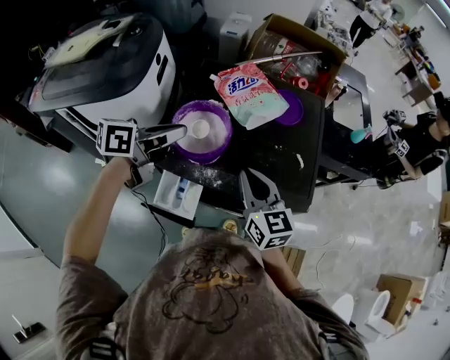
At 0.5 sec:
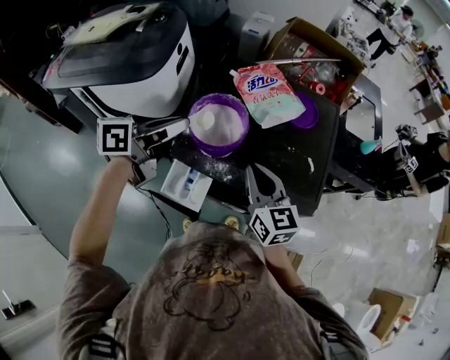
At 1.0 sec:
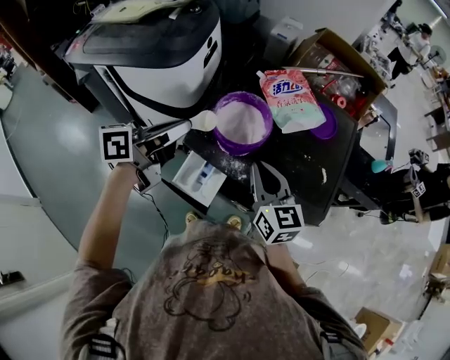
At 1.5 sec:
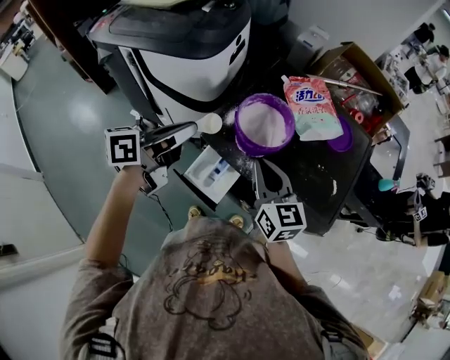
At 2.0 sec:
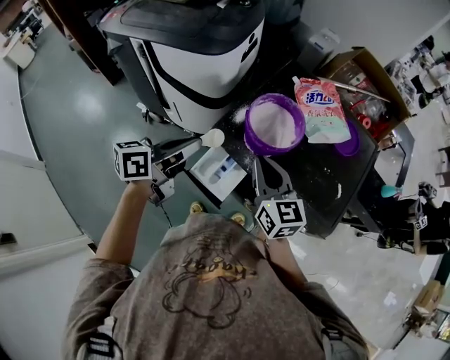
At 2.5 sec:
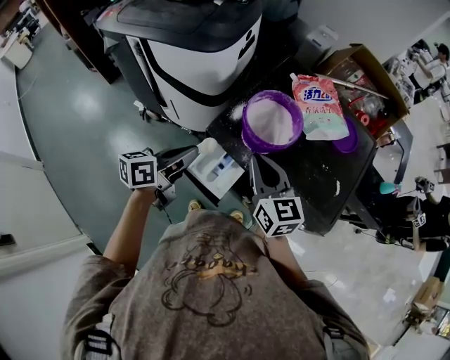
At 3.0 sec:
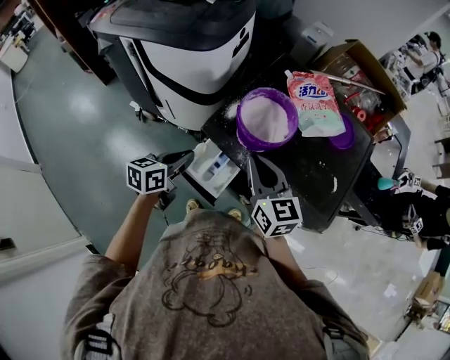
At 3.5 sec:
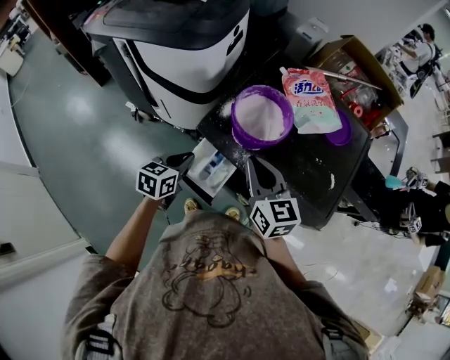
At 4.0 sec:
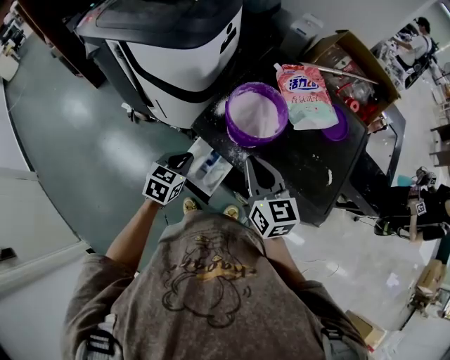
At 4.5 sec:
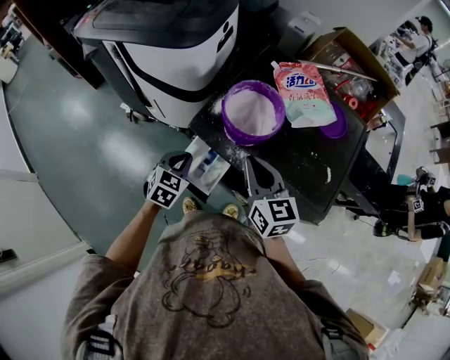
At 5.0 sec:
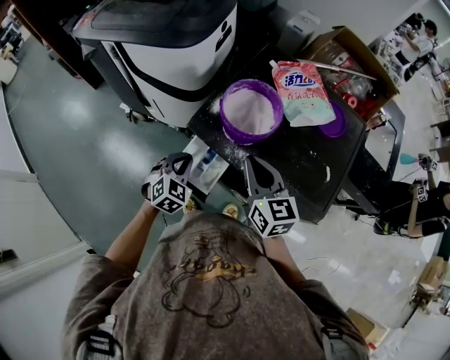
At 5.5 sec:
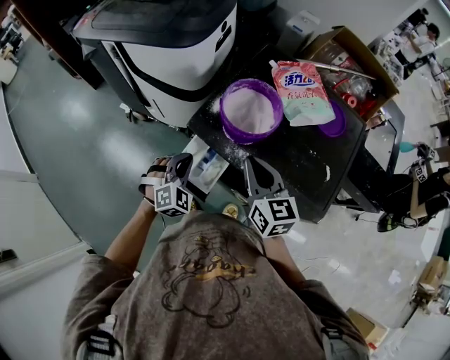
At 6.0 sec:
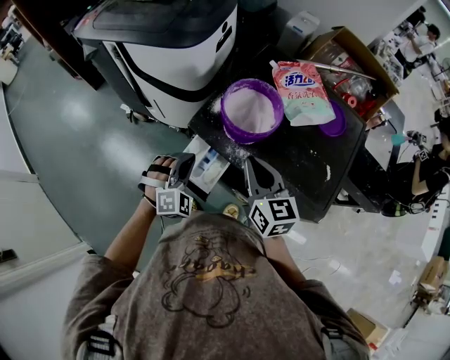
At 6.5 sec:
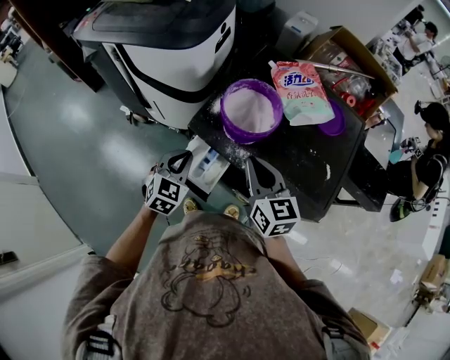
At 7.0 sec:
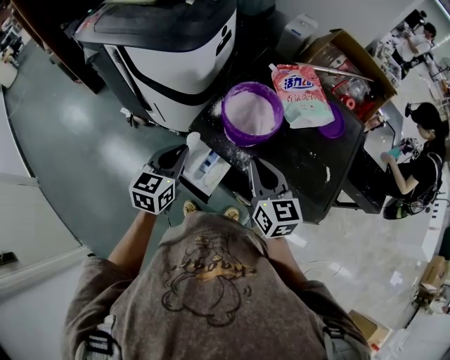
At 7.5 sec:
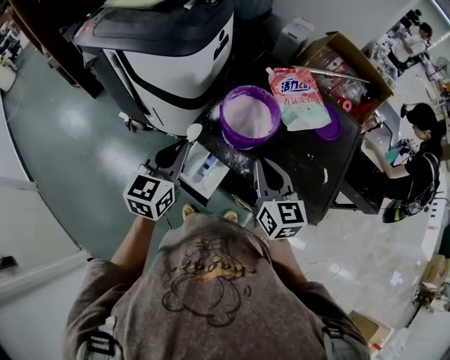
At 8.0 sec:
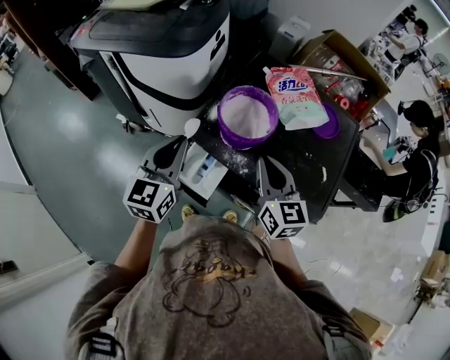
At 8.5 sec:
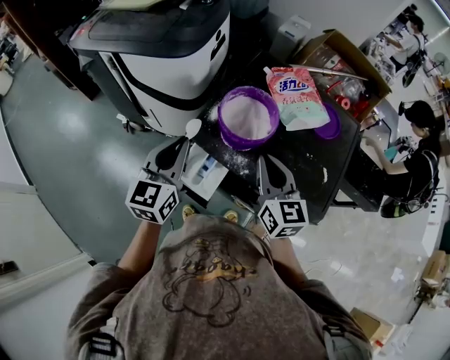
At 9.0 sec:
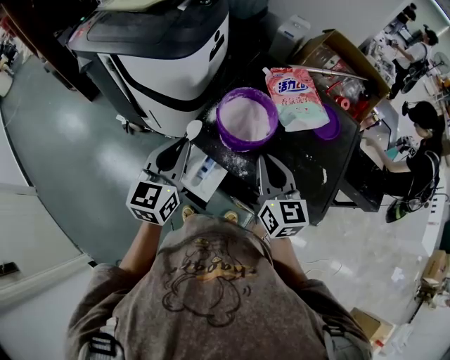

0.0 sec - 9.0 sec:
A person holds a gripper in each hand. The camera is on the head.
0.0 sec - 2.0 sec: The right gripper is displaced to the left by roughly 15 cm, and swivels approximately 20 degrees. The left gripper goes some 20 cm backward and to the left, and turns by some 30 degrees.
2.0 sec - 4.5 sec: The left gripper shifts approximately 20 cm downward, and points its fingers approximately 30 degrees further downward.
4.5 sec - 7.0 sec: The left gripper heads upward, covering about 10 cm, and rotates approximately 30 degrees.
7.0 sec - 9.0 sec: The left gripper shifts some 10 cm upward.

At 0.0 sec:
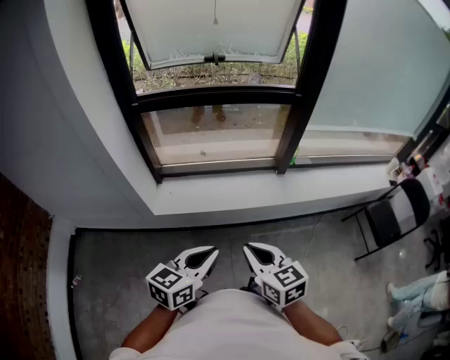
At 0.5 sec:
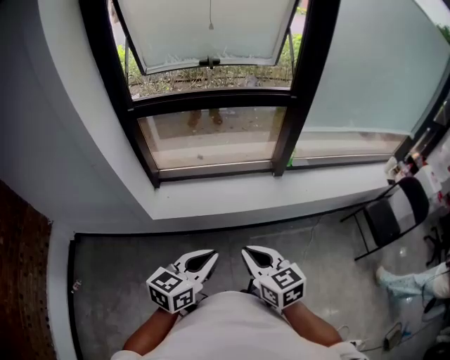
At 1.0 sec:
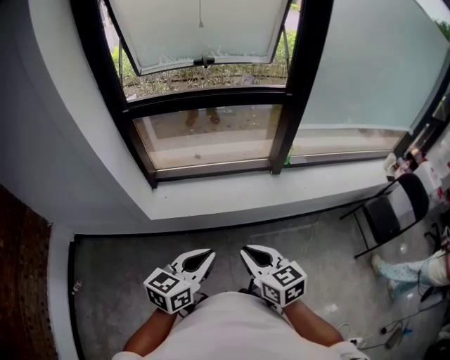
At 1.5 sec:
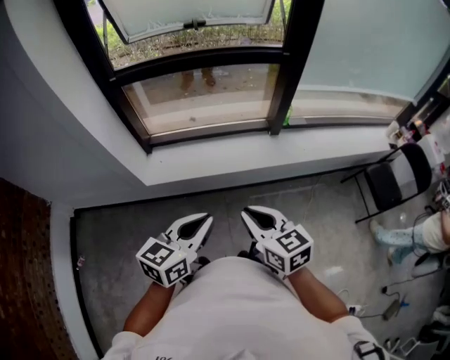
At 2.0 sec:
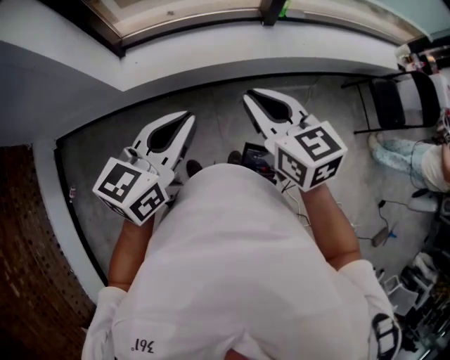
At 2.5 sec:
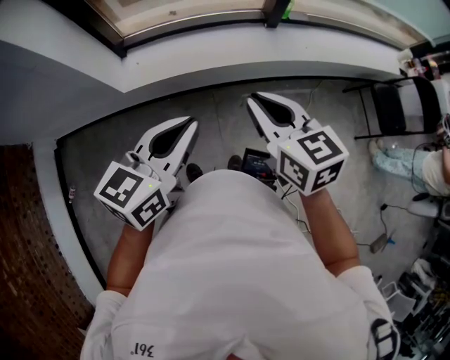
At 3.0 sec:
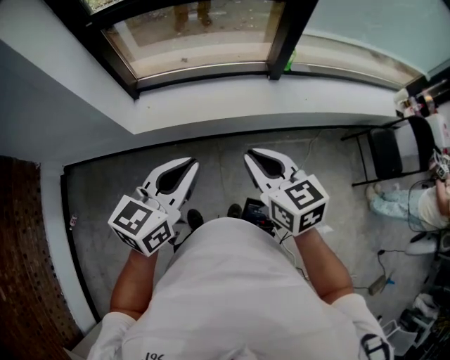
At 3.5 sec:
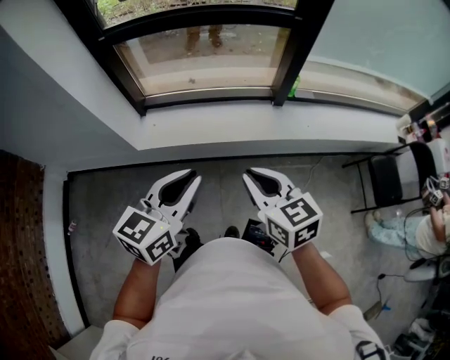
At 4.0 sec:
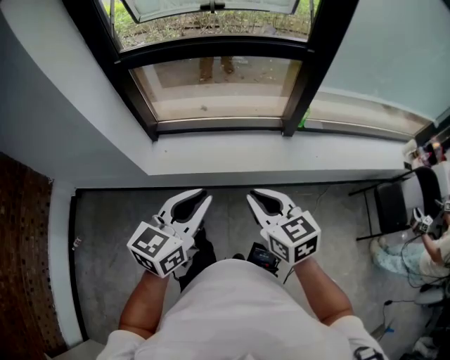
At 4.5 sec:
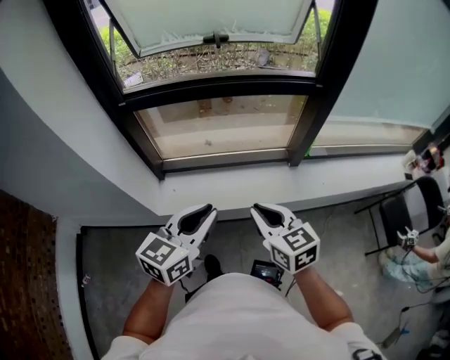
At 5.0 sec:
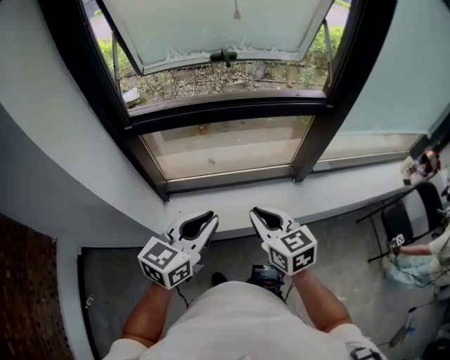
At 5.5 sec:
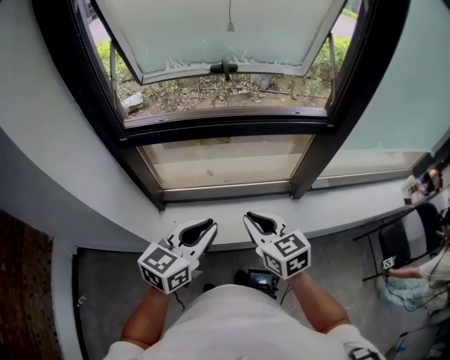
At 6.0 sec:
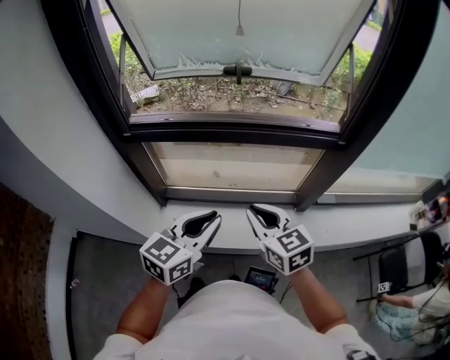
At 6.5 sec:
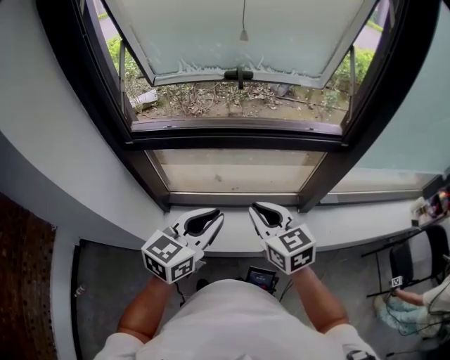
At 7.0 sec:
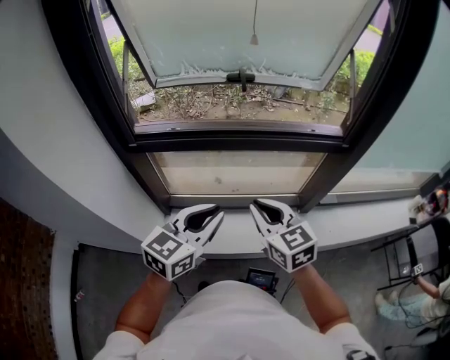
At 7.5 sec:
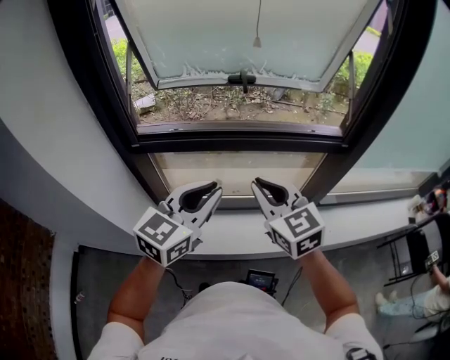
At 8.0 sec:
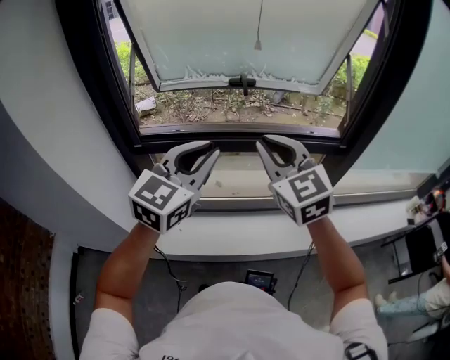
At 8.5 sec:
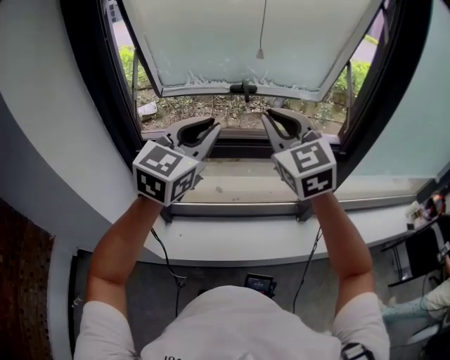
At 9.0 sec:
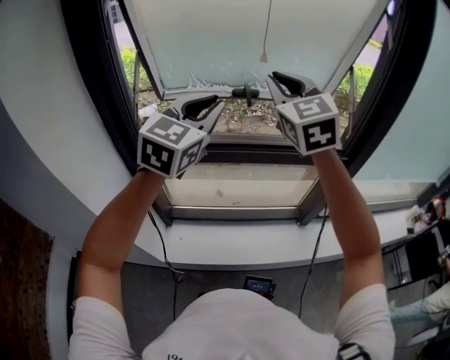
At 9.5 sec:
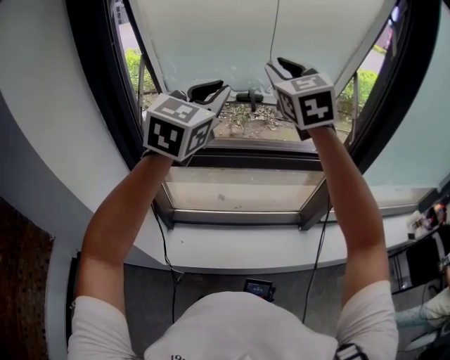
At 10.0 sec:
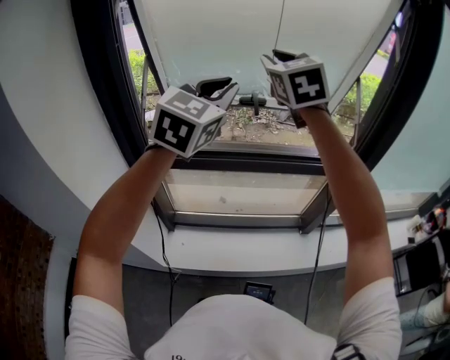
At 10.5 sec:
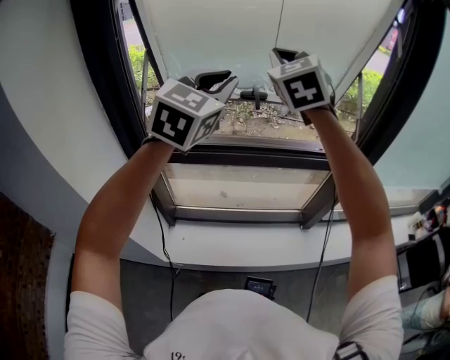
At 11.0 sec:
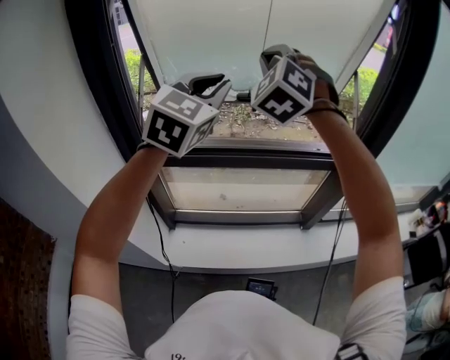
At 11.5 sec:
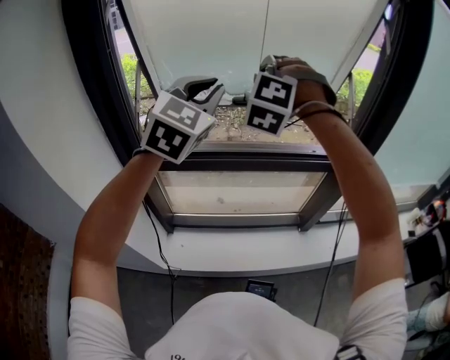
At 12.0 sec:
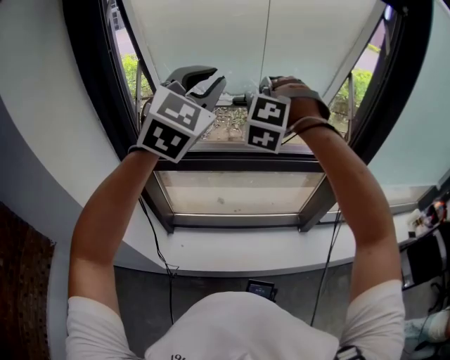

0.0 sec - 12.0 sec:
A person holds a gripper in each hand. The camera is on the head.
0.0 sec - 2.0 sec: The grippers both shift to the right by approximately 5 cm.
2.0 sec - 4.0 sec: The two grippers go about 10 cm forward.
4.0 sec - 6.0 sec: Both grippers travel together forward, some 30 cm.
6.0 sec - 8.0 sec: The right gripper is displaced upward and forward by approximately 20 cm, and rotates approximately 30 degrees. The left gripper moves upward, forward and to the left, some 20 cm, and turns by about 20 degrees.
8.0 sec - 10.0 sec: Both grippers move upward and forward, about 20 cm. The right gripper opens its fingers.
10.0 sec - 12.0 sec: The right gripper moves downward, approximately 10 cm, twists roughly 60 degrees counterclockwise, seen from behind, and closes.

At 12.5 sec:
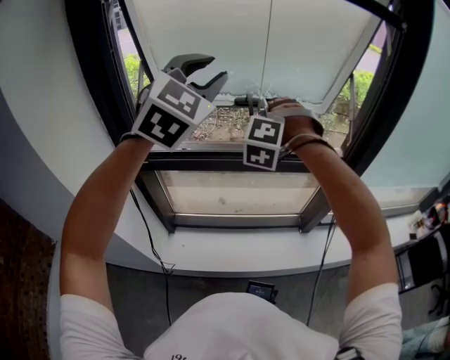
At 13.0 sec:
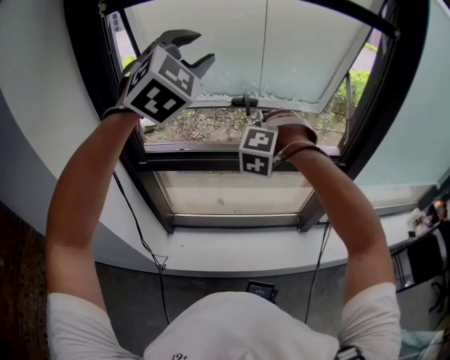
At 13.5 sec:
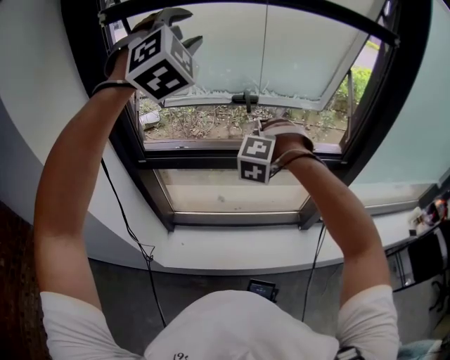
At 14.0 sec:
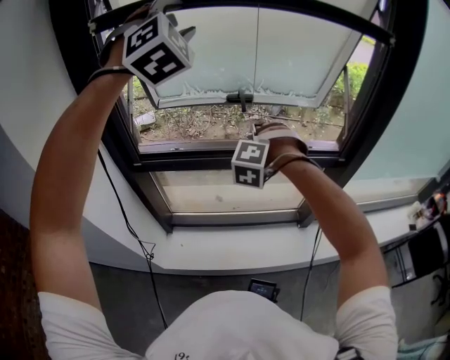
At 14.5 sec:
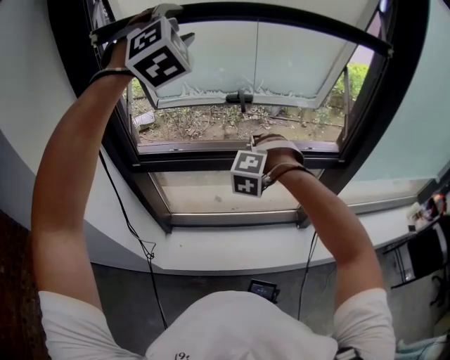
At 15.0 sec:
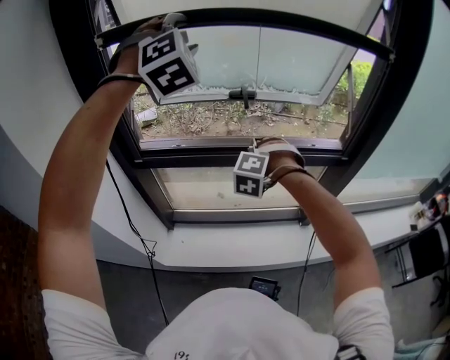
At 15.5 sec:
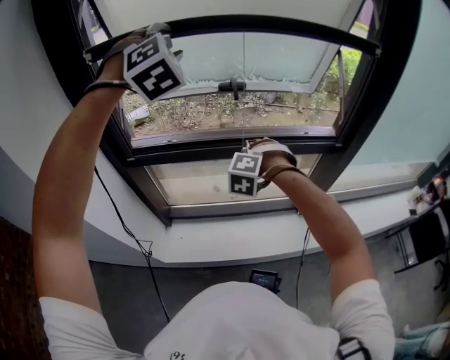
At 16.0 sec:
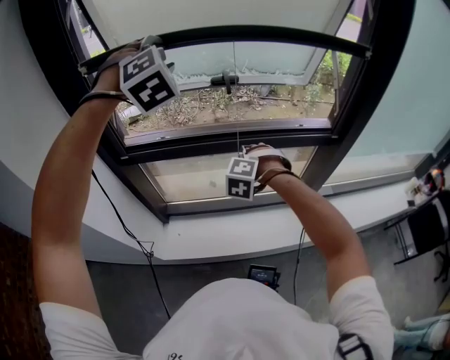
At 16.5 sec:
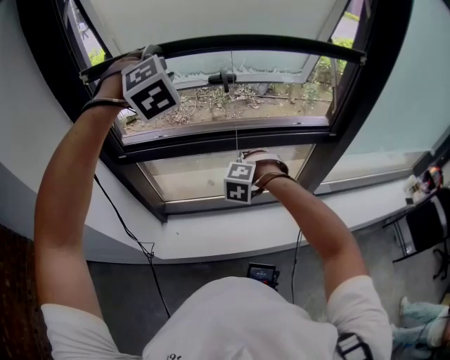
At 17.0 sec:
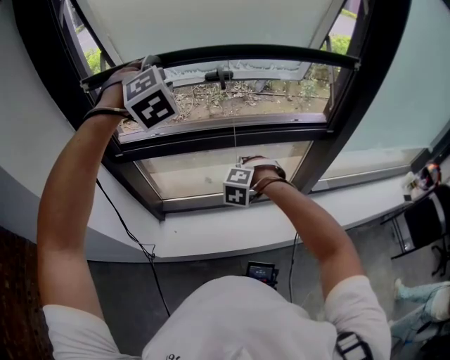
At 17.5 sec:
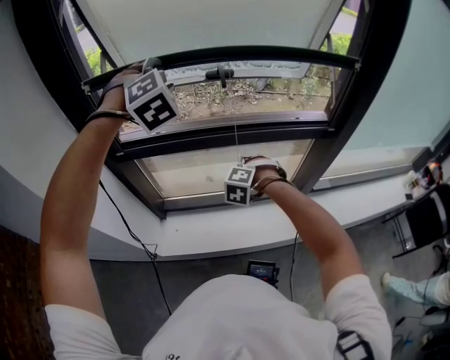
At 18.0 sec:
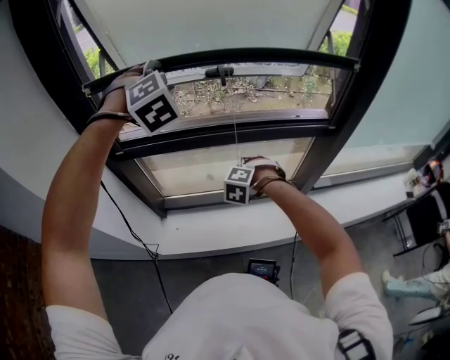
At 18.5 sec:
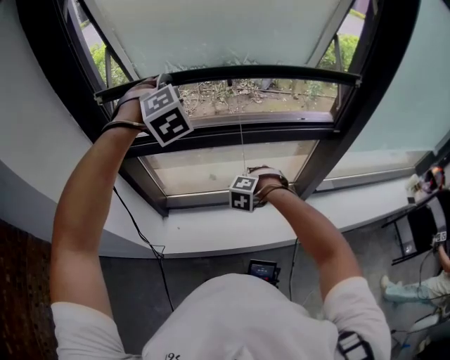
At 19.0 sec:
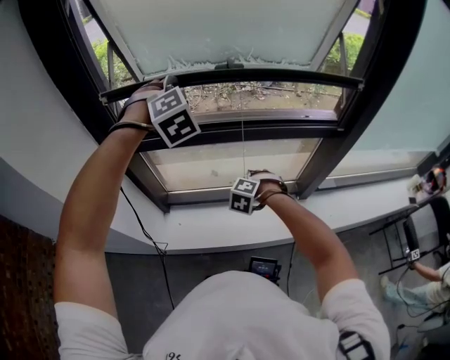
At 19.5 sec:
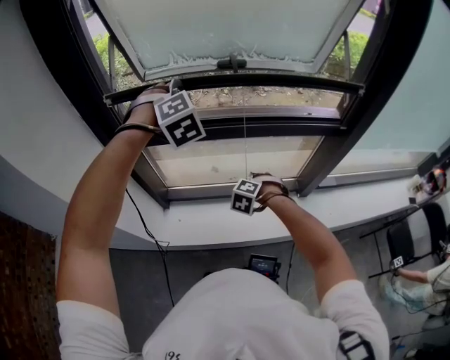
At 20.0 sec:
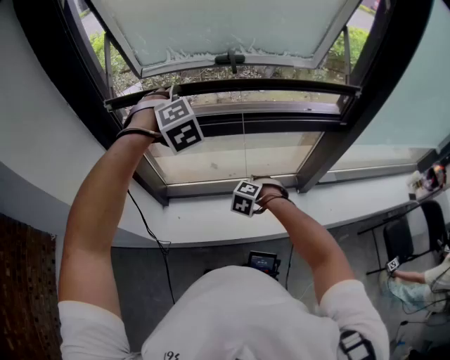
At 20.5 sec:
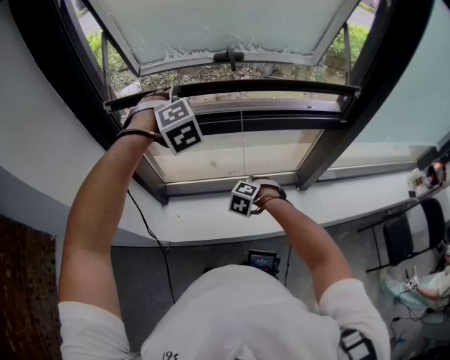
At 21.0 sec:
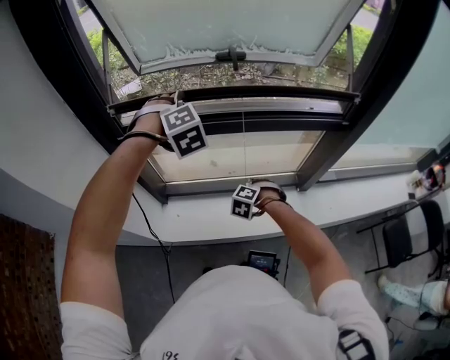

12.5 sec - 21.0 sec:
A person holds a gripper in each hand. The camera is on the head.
12.5 sec - 14.5 sec: The right gripper goes about 15 cm downward. The left gripper moves forward, upward and to the left, roughly 10 cm, swivels approximately 40 degrees, and opens up.
14.5 sec - 16.5 sec: Both grippers travel together downward, some 15 cm.
16.5 sec - 19.0 sec: Both grippers move downward, roughly 10 cm.
19.0 sec - 21.0 sec: The grippers both shift downward by roughly 10 cm.
